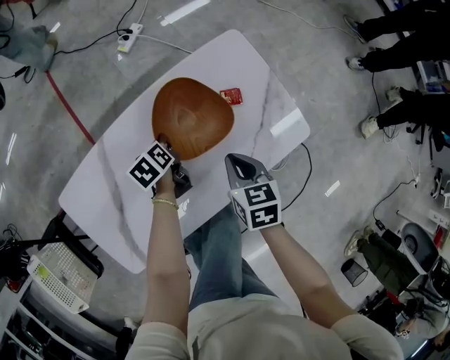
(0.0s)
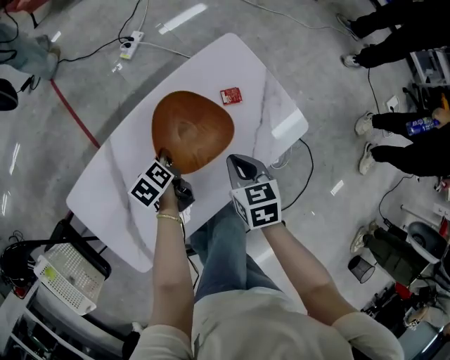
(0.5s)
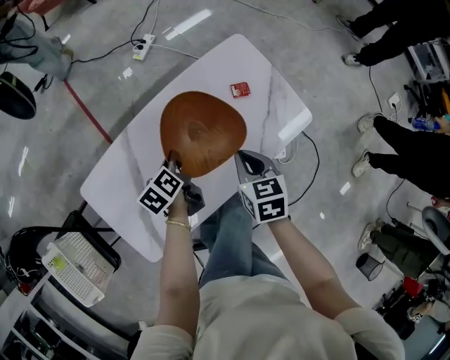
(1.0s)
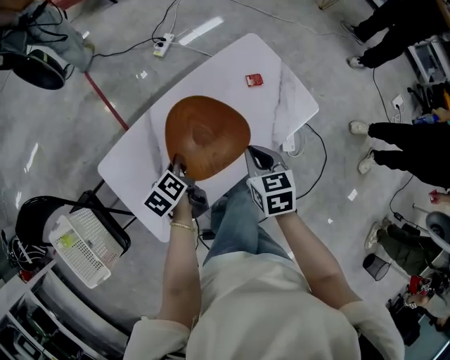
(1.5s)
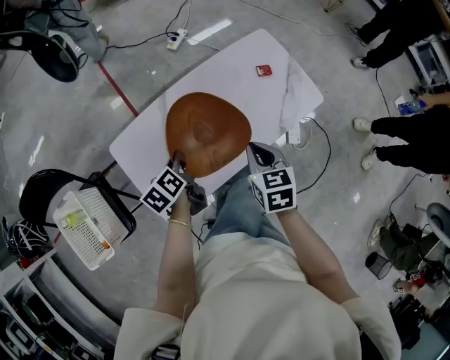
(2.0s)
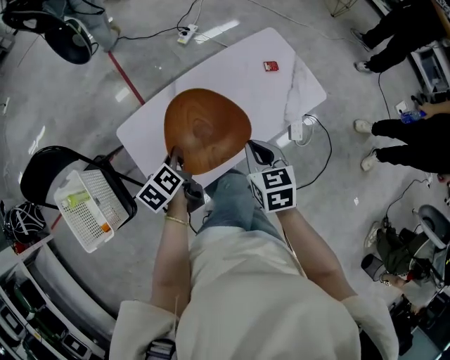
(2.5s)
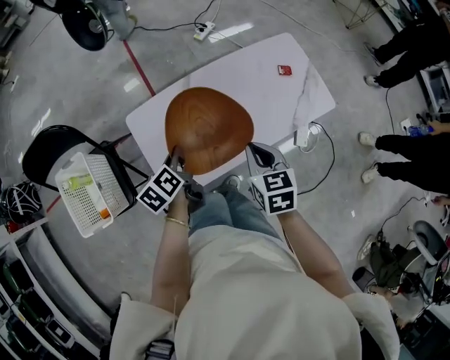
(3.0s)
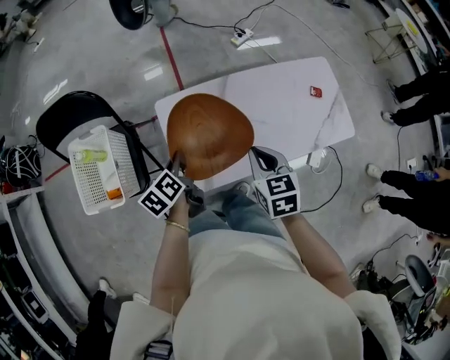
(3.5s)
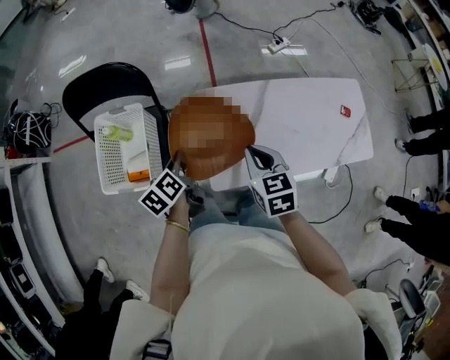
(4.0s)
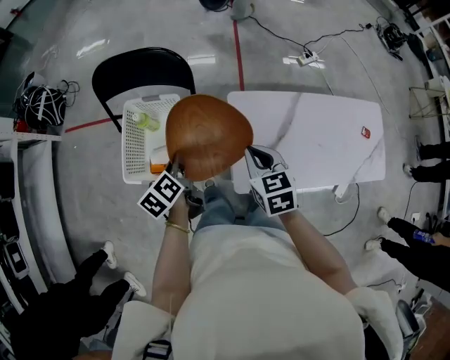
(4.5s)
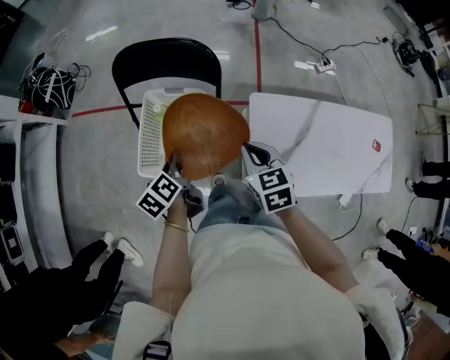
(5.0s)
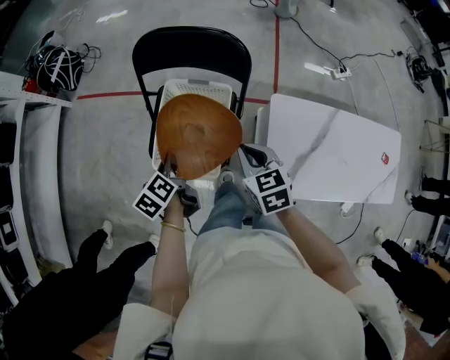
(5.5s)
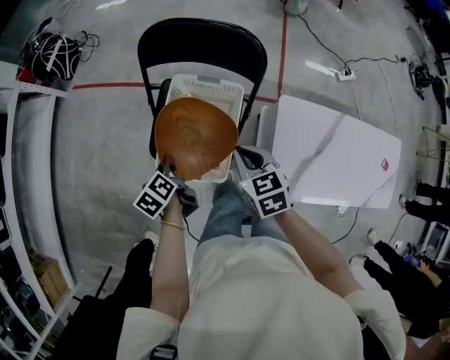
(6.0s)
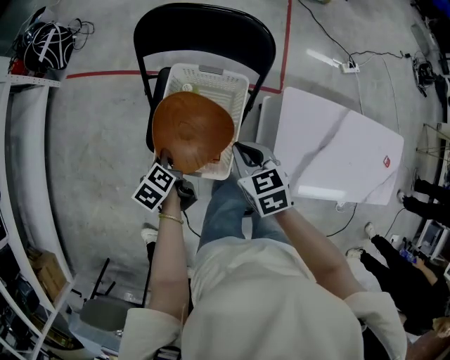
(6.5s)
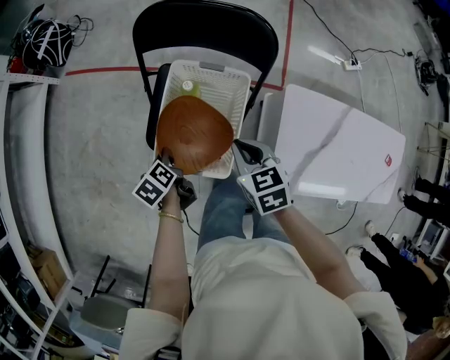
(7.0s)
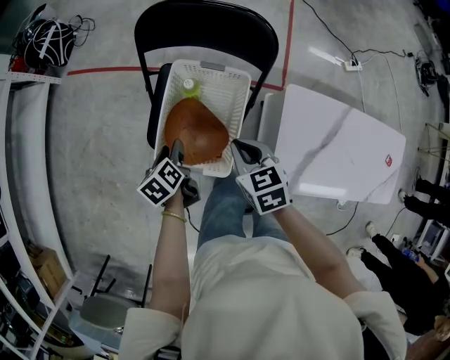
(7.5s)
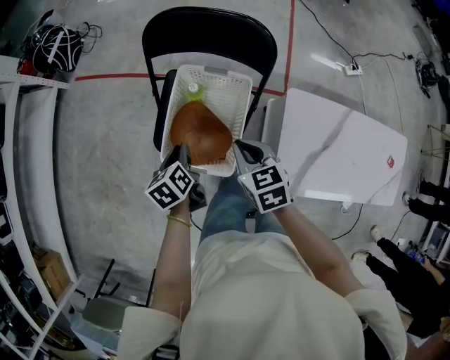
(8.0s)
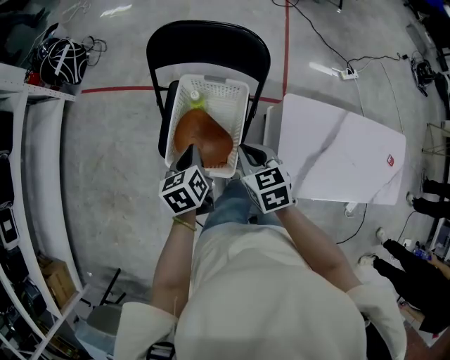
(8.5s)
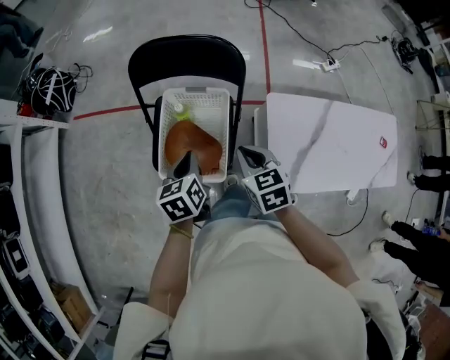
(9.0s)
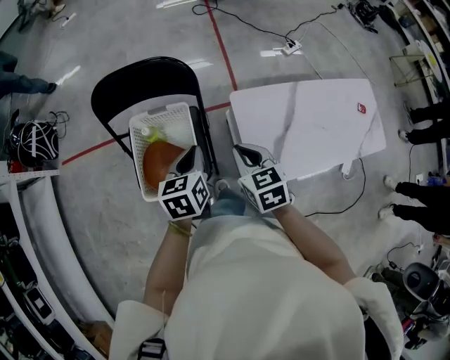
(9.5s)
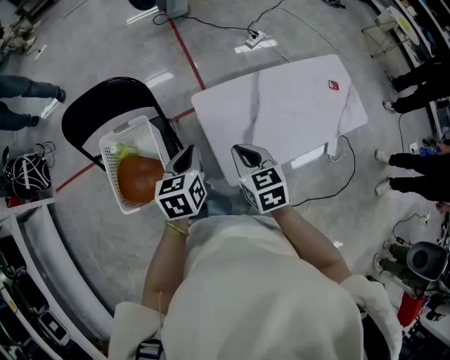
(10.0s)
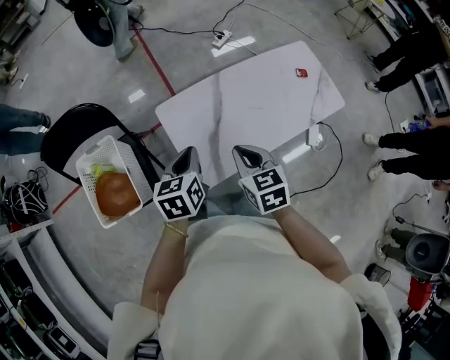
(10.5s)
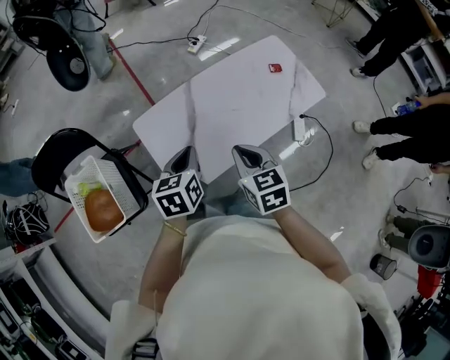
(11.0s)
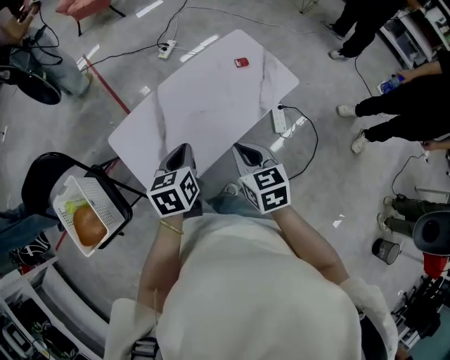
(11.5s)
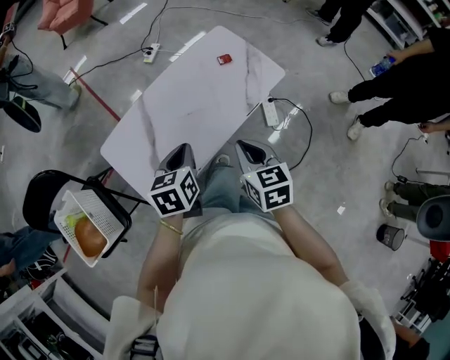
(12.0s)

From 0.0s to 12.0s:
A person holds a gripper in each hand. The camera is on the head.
From 0.0s to 2.0s: The right gripper heads upward, backward and to the left, covering approximately 30 cm, while the left gripper is displaced backward, upward and to the left by some 35 cm.
From 2.0s to 4.0s: The right gripper shifts by approximately 35 cm, and swivels approximately 30 degrees, while the left gripper moves some 35 cm, and changes its angle by about 30 degrees.
From 4.0s to 6.0s: The right gripper moves roughly 35 cm, and turns by about 20 degrees, while the left gripper changes place by roughly 35 cm, and swivels roughly 30 degrees.
From 6.0s to 8.0s: The left gripper opens, then closes once more.
From 8.0s to 10.0s: The left gripper shifts by about 35 cm, and rotates roughly 50 degrees. Meanwhile the right gripper changes place by approximately 30 cm, and turns by about 30 degrees.
From 10.0s to 12.0s: The two grippers travel together, to the right, some 50 cm. The left gripper turns by some 20 degrees. Meanwhile the right gripper rotates about 30 degrees.

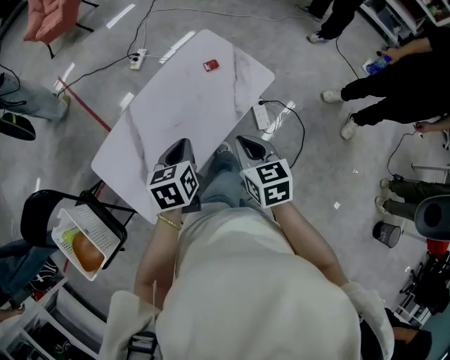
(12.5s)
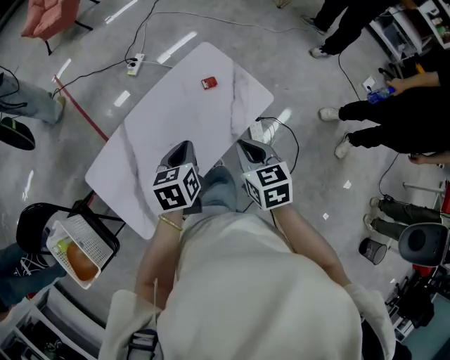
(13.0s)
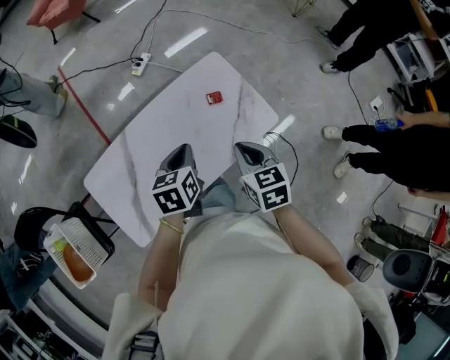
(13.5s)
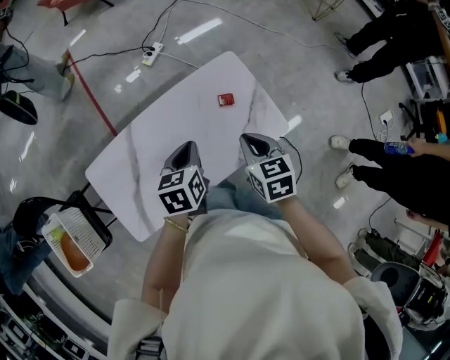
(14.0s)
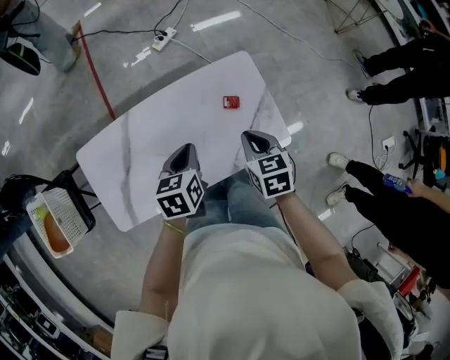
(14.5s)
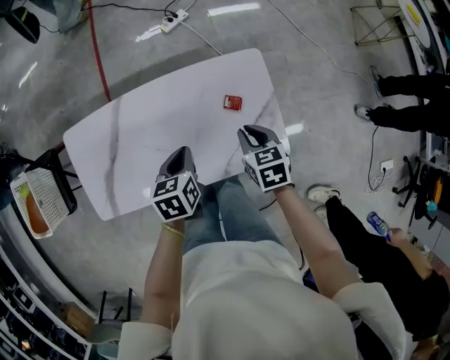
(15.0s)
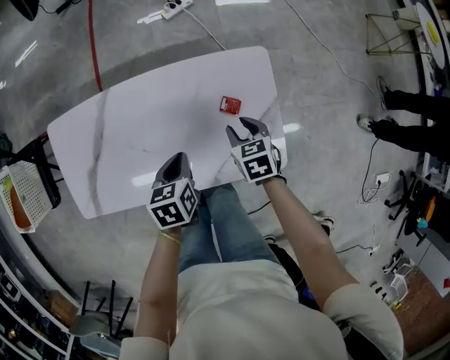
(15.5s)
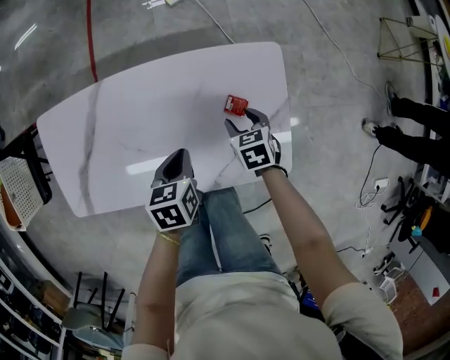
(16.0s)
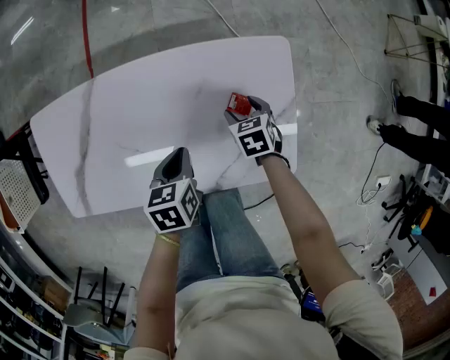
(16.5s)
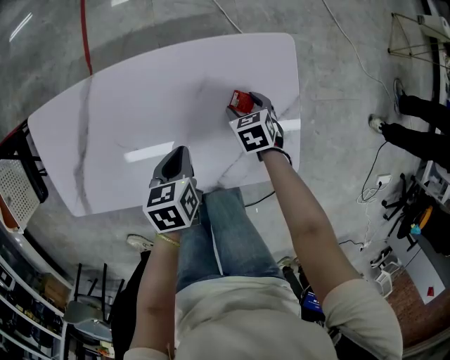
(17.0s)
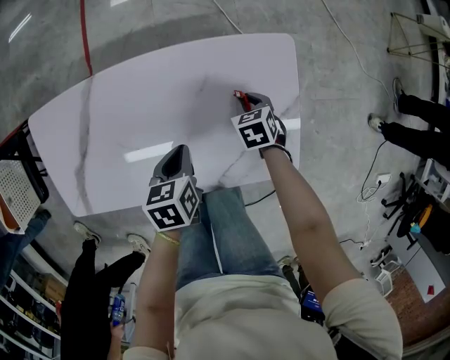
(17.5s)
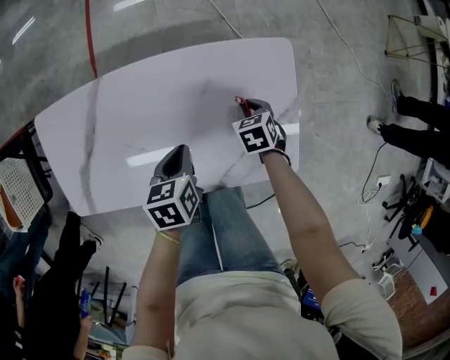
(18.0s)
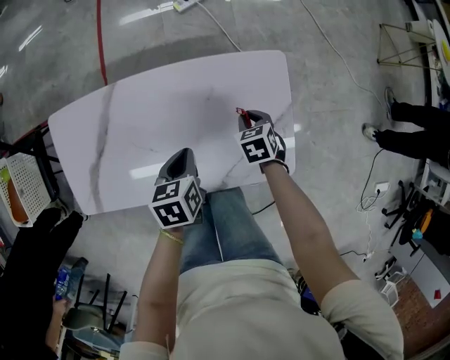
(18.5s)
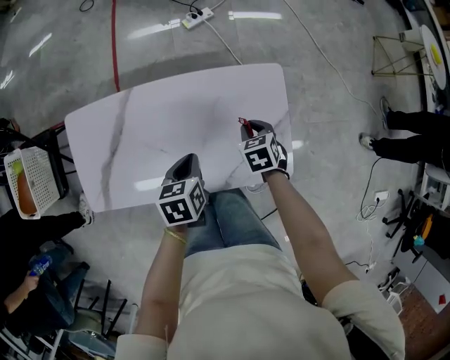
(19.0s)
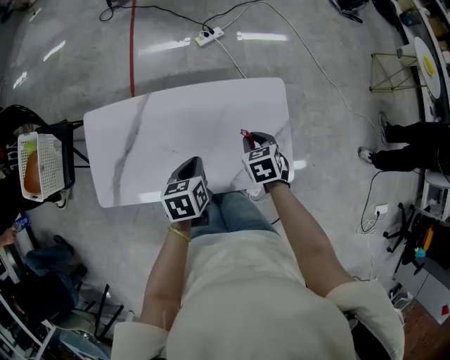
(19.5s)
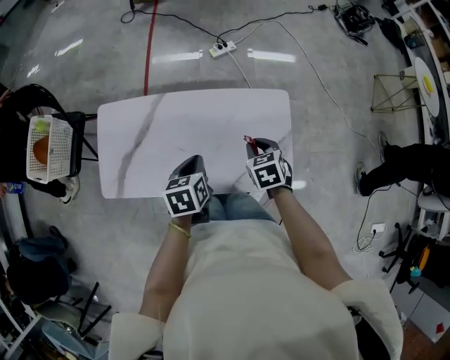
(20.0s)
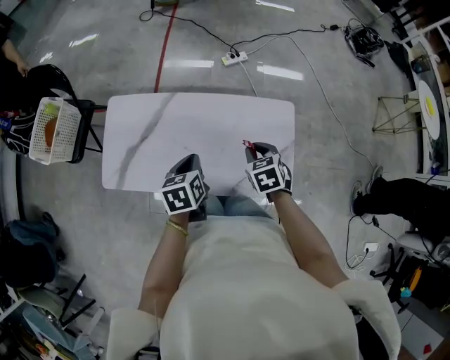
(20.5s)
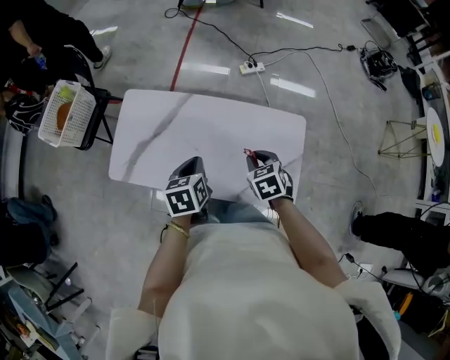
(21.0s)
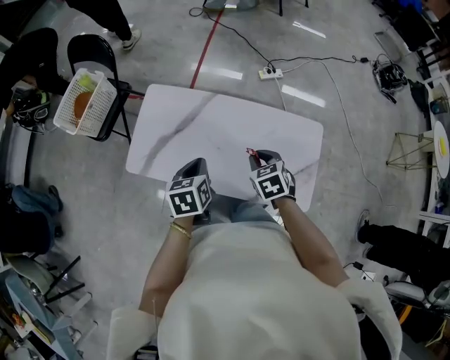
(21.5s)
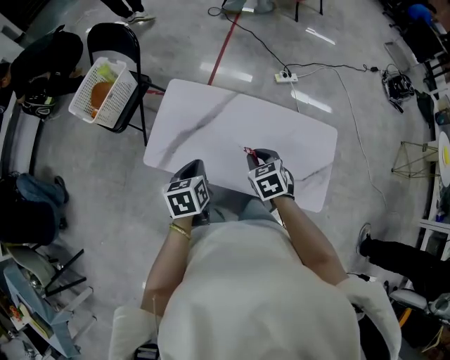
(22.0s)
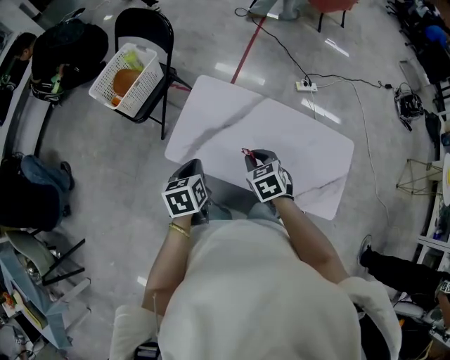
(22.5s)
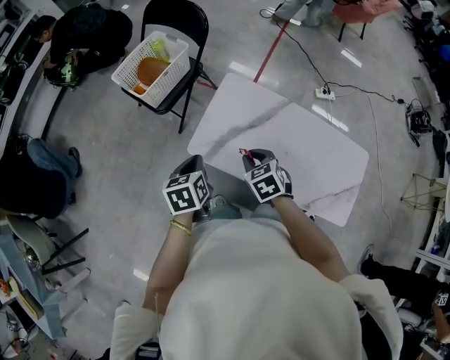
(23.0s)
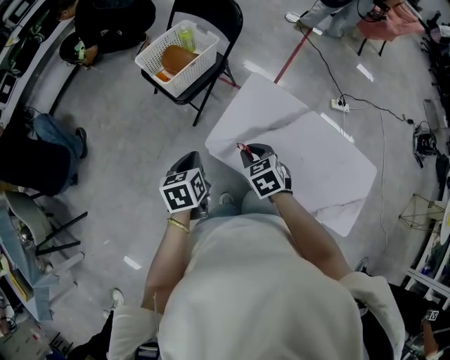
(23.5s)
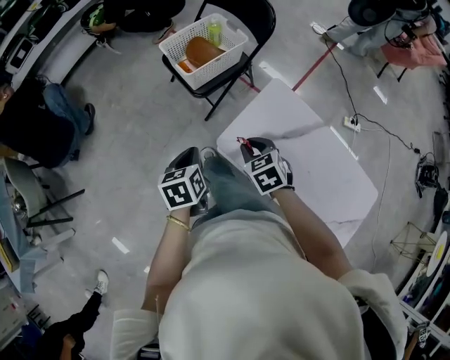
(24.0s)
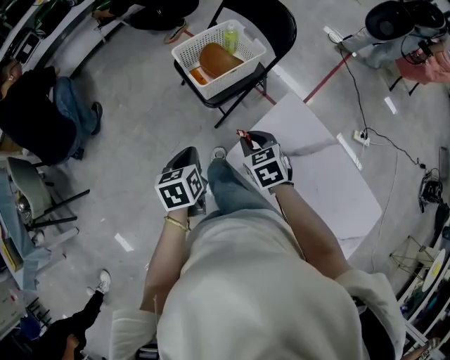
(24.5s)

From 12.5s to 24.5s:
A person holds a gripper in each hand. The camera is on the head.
From 12.5s to 14.5s: Both grippers move forward, some 25 cm. The left gripper changes its angle by about 20 degrees, while the right gripper rotates approximately 30 degrees.
From 14.5s to 16.5s: Both grippers move downward, some 25 cm. The left gripper turns by roughly 20 degrees. The right gripper changes its angle by some 30 degrees, and opens up.
From 16.5s to 18.5s: Both grippers move upward, approximately 5 cm. The right gripper closes up.
From 18.5s to 20.5s: The right gripper goes roughly 25 cm upward. The left gripper heads upward, backward and to the left, covering about 20 cm.
From 20.5s to 22.5s: Both grippers travel together to the left, approximately 35 cm. The right gripper changes its angle by some 20 degrees.
From 22.5s to 24.5s: The left gripper changes place by about 35 cm, and changes its angle by approximately 20 degrees. Meanwhile the right gripper shifts by approximately 40 cm, and turns by roughly 20 degrees.

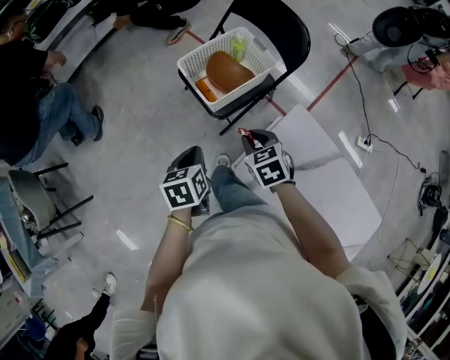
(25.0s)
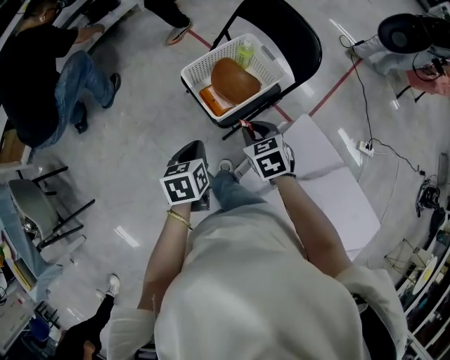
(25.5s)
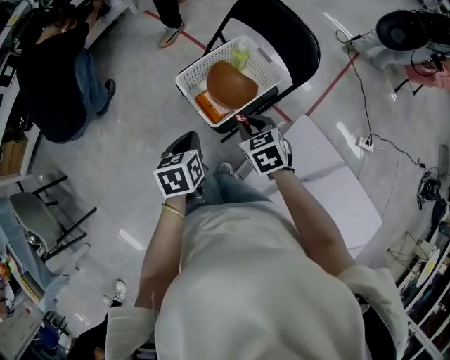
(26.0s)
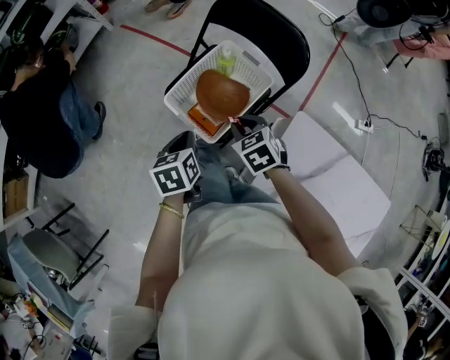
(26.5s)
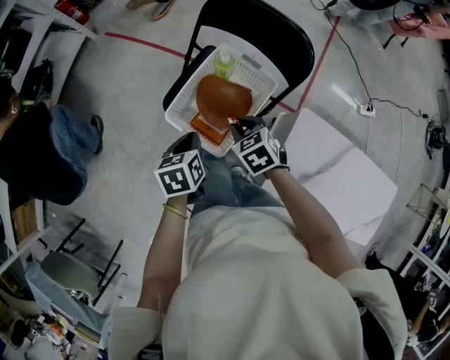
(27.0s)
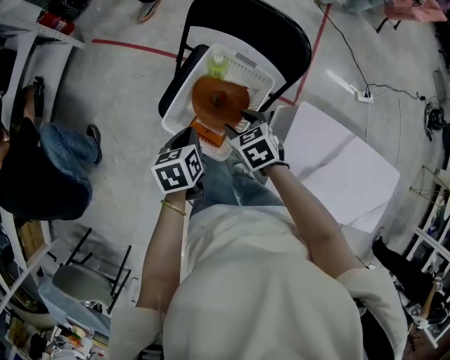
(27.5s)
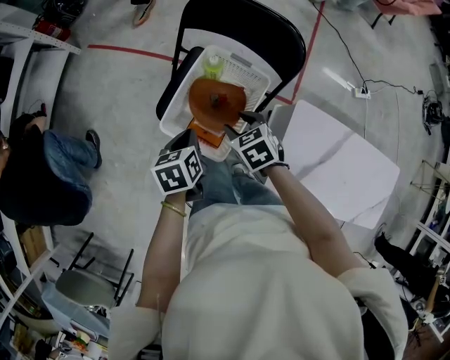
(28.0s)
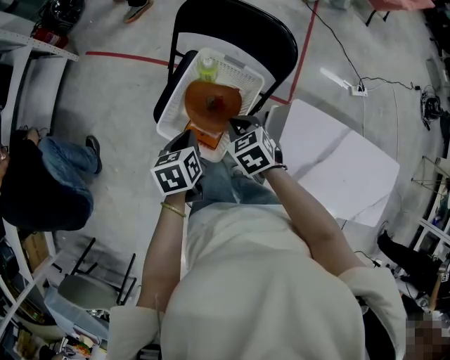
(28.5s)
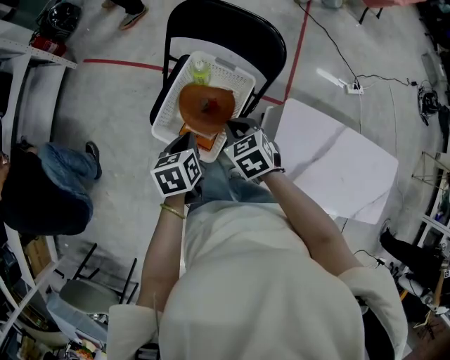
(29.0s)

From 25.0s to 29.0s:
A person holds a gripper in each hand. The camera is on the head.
From 25.0s to 27.0s: Both grippers travel together forward, roughly 25 cm.
From 27.0s to 29.0s: The right gripper opens, then closes again.
